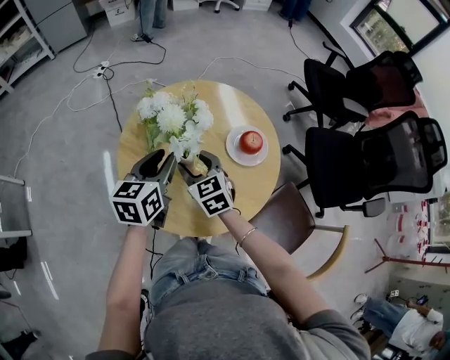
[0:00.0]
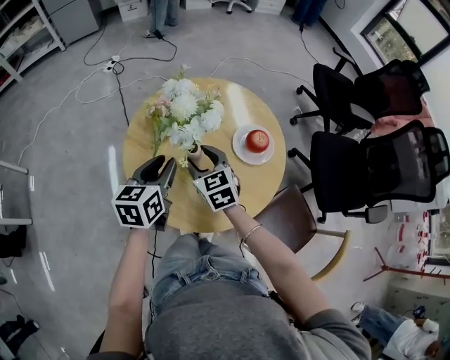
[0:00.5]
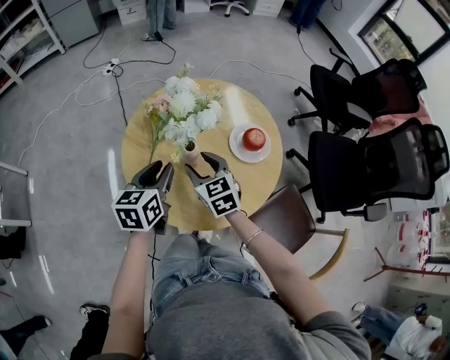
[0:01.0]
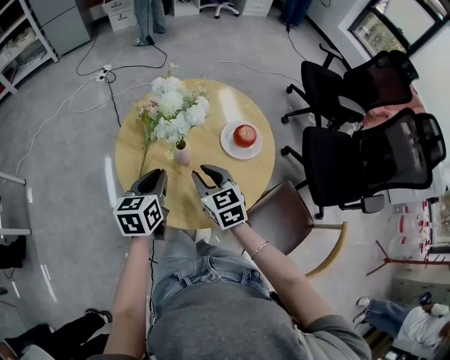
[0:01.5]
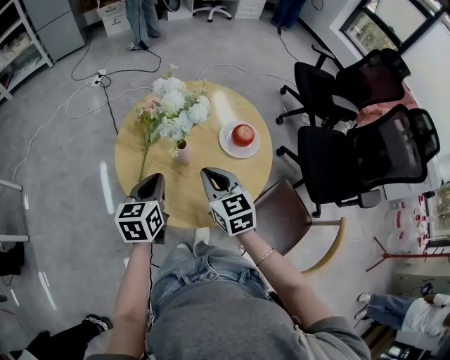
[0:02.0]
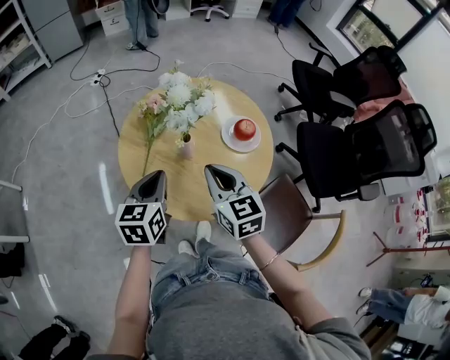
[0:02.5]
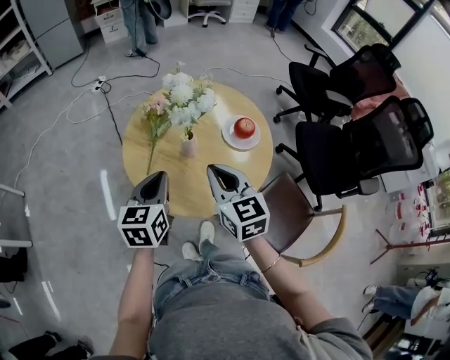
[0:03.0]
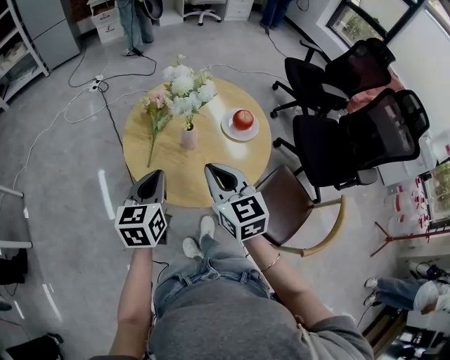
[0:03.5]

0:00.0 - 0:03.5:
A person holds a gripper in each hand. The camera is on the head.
0:00.0 - 0:02.0: The left gripper goes roughly 10 cm backward, and closes, while the right gripper heads backward and to the right, covering about 10 cm, and closes.
0:02.0 - 0:03.5: The left gripper heads backward and upward, covering about 10 cm. The right gripper is displaced upward and backward by roughly 10 cm.

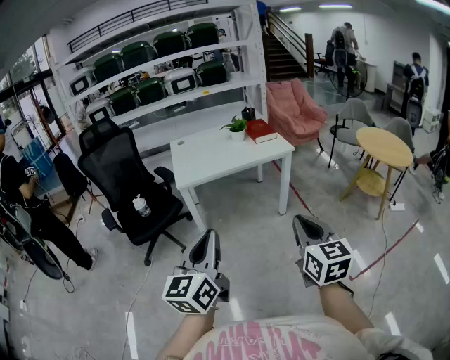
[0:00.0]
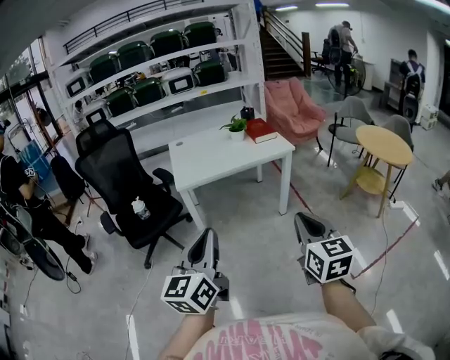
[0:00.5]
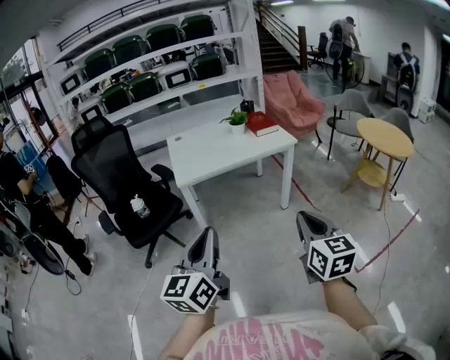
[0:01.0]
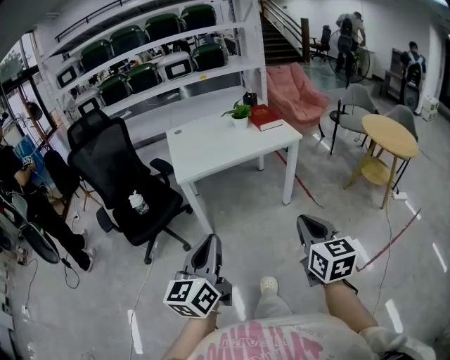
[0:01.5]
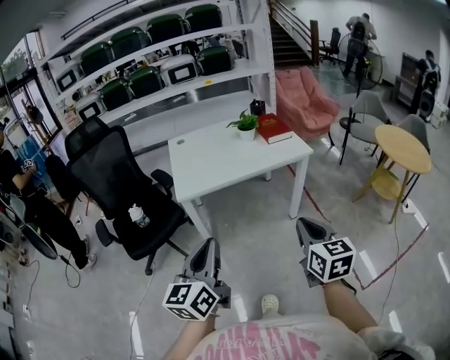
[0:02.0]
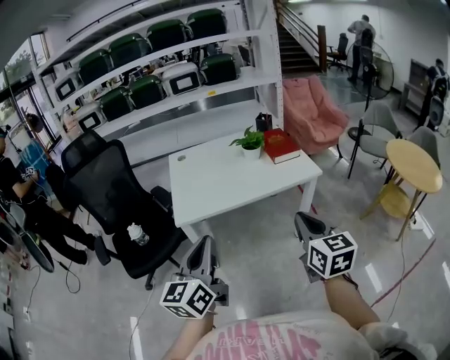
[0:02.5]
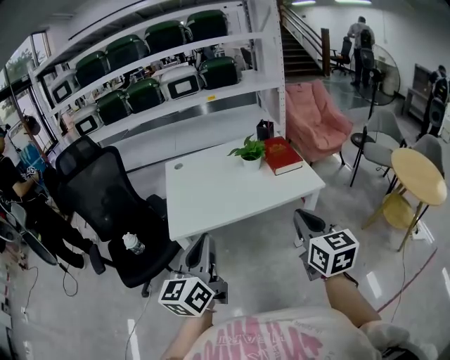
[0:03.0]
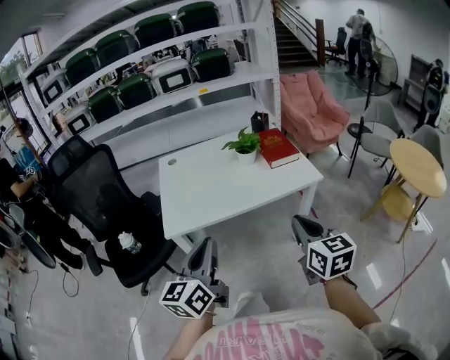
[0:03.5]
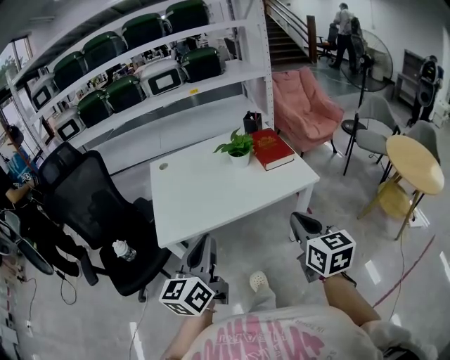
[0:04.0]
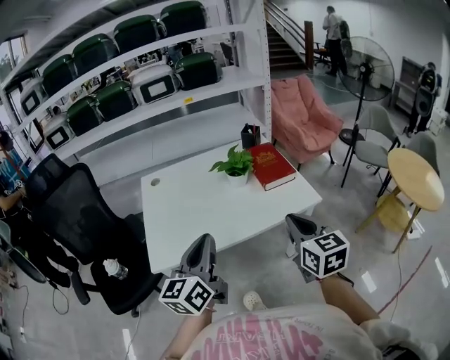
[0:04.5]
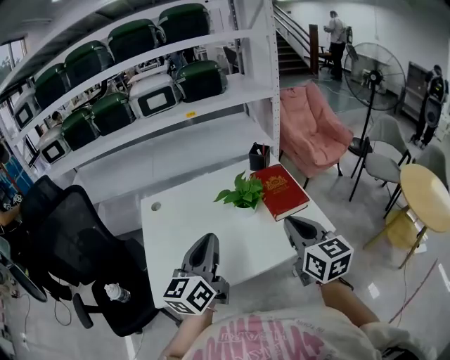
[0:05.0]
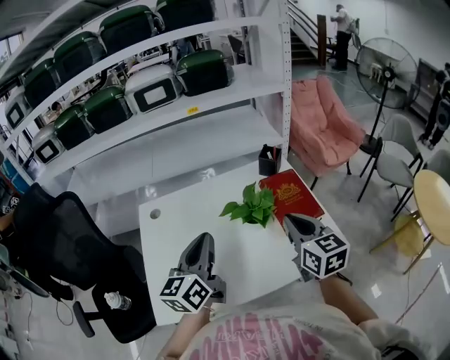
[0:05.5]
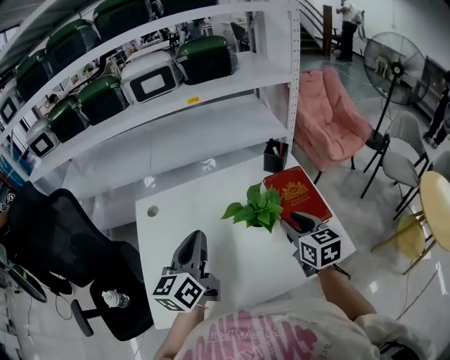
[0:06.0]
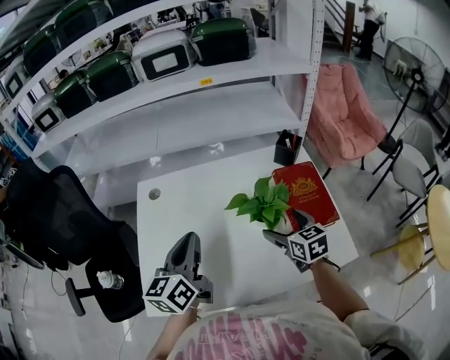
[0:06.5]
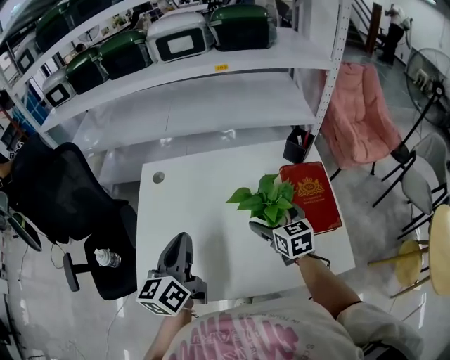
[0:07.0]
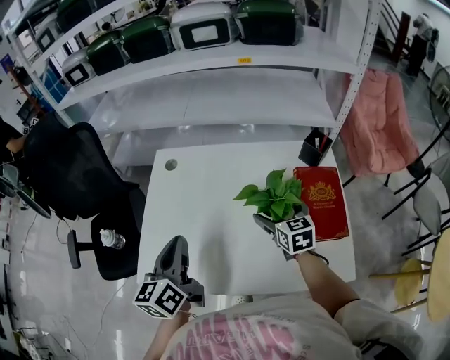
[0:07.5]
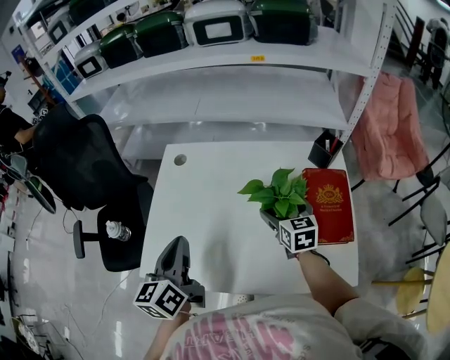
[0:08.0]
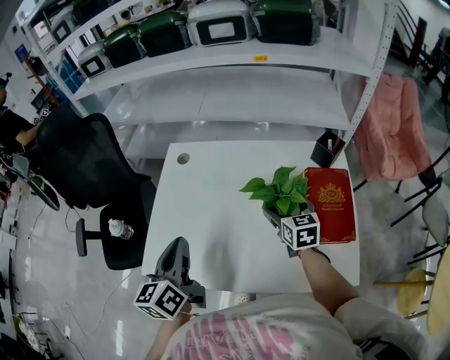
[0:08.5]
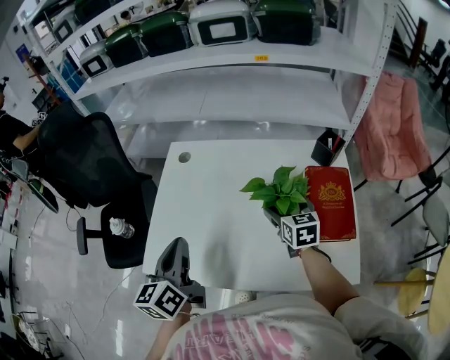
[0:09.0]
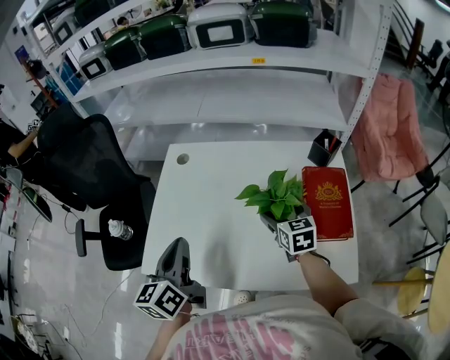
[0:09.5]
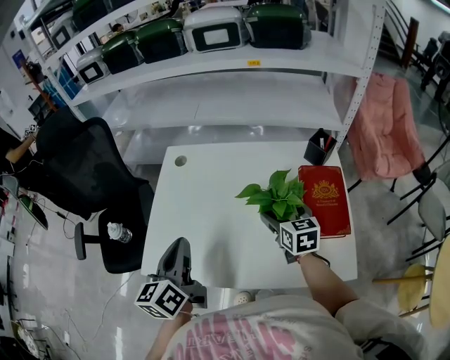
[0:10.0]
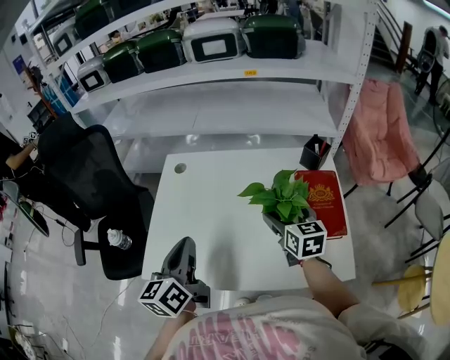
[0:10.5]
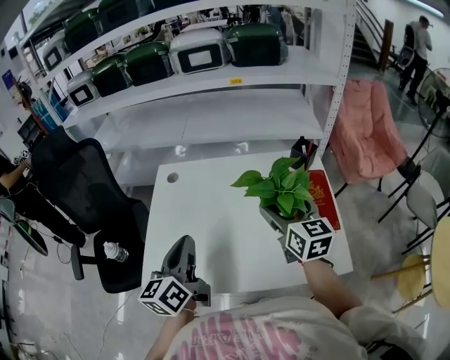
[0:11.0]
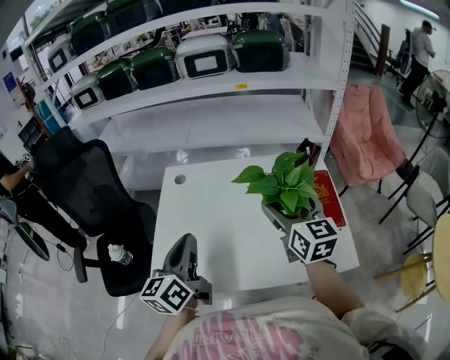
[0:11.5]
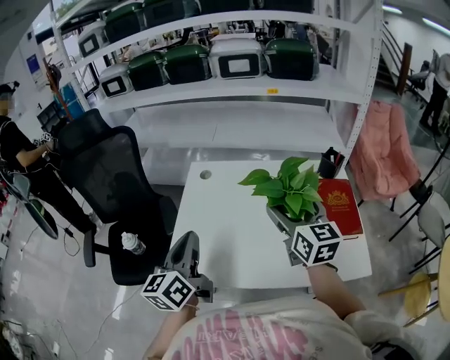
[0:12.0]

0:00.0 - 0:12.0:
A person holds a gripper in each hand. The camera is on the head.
0:00.0 - 0:02.0: The grippers both shift forward by roughly 20 cm.
0:02.0 - 0:04.0: Both grippers move forward, about 30 cm.
0:04.0 - 0:06.0: The pair of grippers is taken forward, approximately 50 cm.
0:06.0 - 0:08.0: The left gripper shifts some 10 cm to the left and backward, and changes its angle by roughly 30 degrees. The right gripper shifts roughly 15 cm forward, downward and to the left, and opens.
0:08.0 - 0:10.0: The grippers move only a little.
0:10.0 - 0:12.0: The right gripper travels upward and to the left by approximately 20 cm, and turns by about 20 degrees. Meanwhile the left gripper moves to the left, some 10 cm.

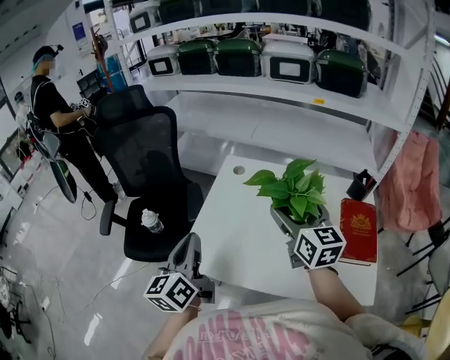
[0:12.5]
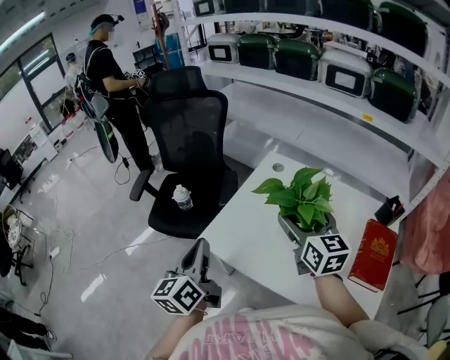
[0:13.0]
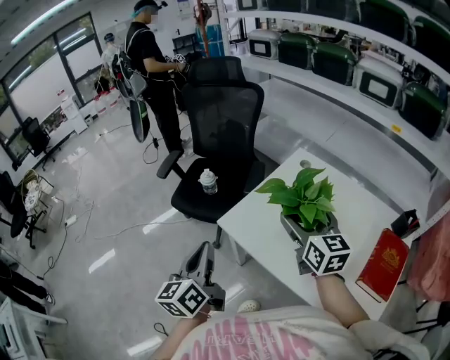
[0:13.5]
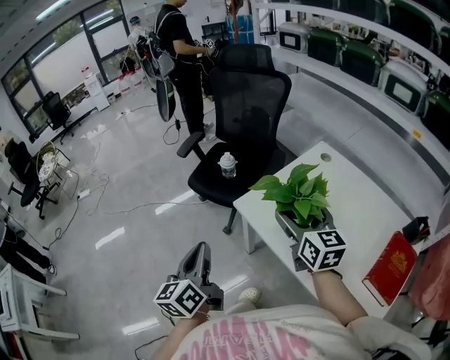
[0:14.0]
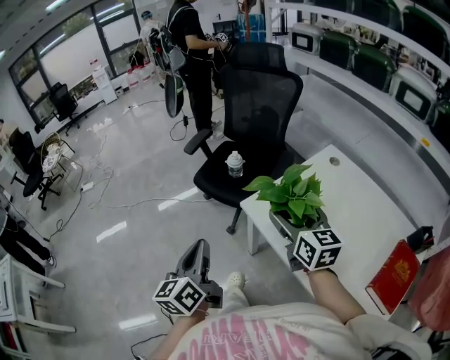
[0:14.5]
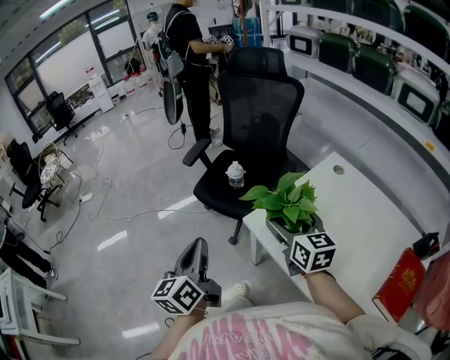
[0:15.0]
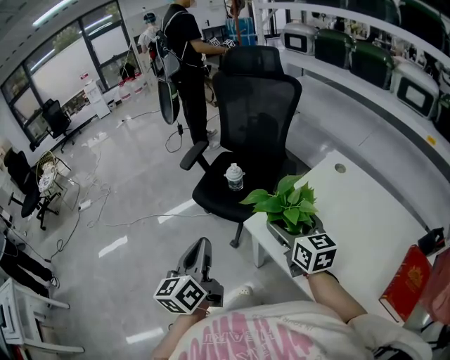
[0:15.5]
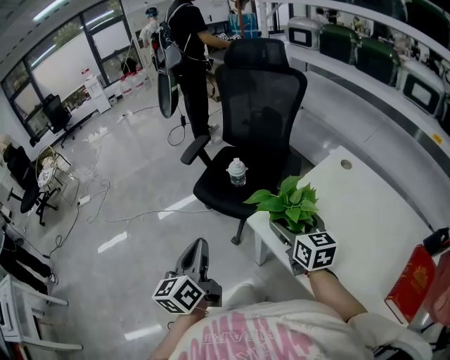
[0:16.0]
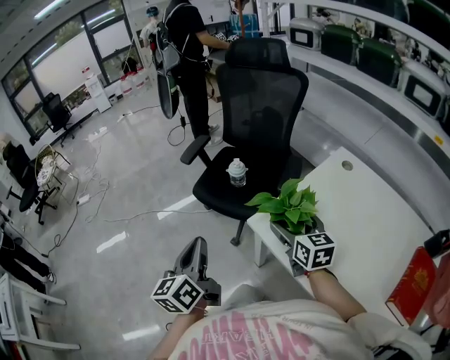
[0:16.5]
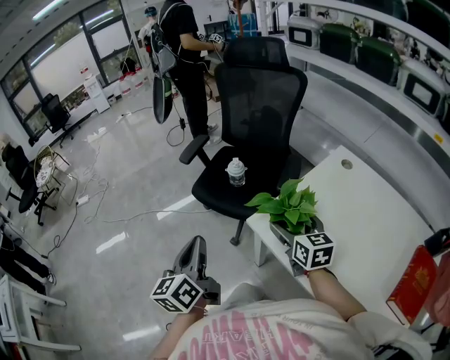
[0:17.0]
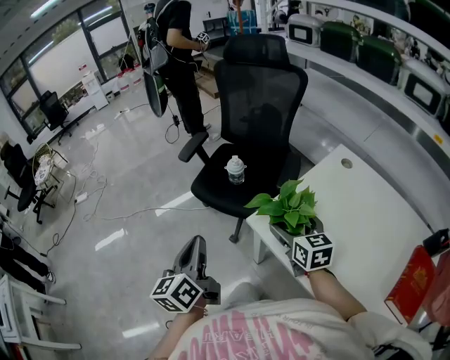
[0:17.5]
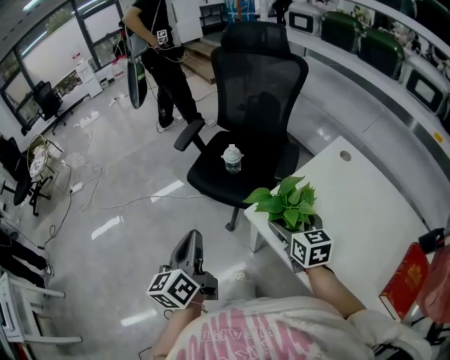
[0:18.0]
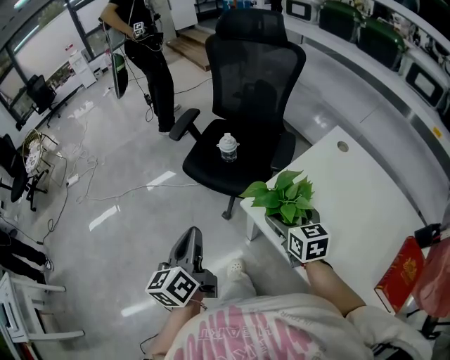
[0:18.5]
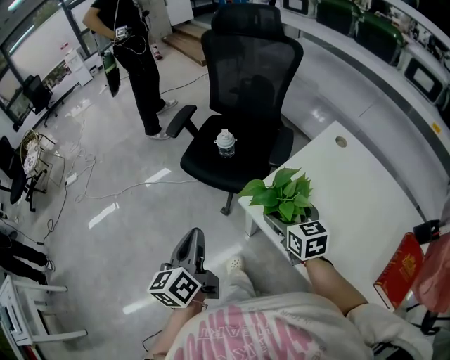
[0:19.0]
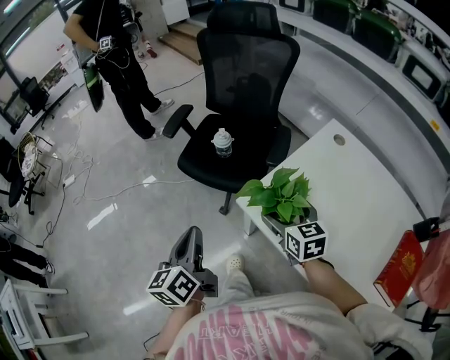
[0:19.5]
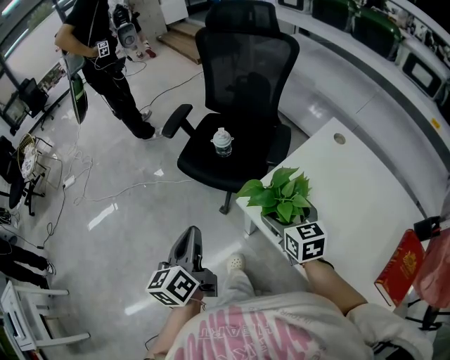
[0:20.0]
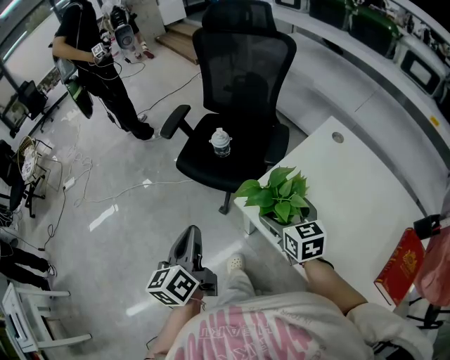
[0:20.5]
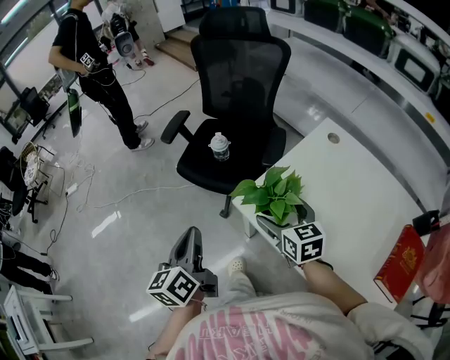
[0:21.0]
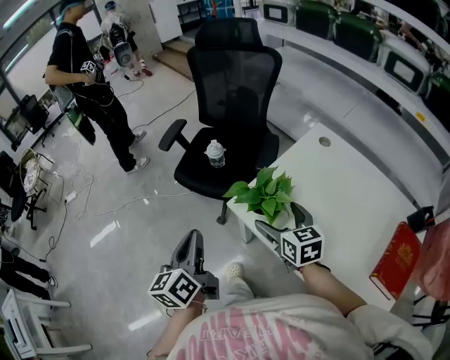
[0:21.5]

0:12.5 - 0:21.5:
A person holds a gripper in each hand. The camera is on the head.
0:12.5 - 0:14.5: The left gripper shifts by roughly 25 cm, and changes its angle by about 40 degrees, while the right gripper changes place by roughly 25 cm, and rotates some 40 degrees.
0:14.5 - 0:17.0: The right gripper goes some 15 cm downward and forward, while the left gripper moves forward and downward, roughly 15 cm.
0:17.0 - 0:19.5: The grippers move only a little.
0:19.5 - 0:21.5: The right gripper moves approximately 5 cm. Meanwhile the left gripper changes place by about 5 cm.

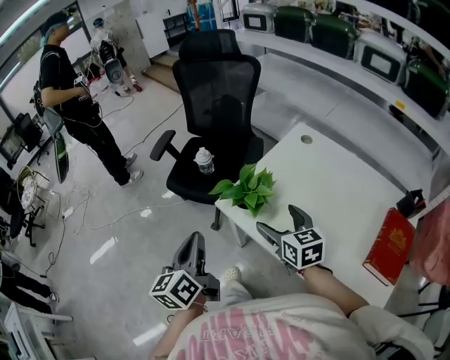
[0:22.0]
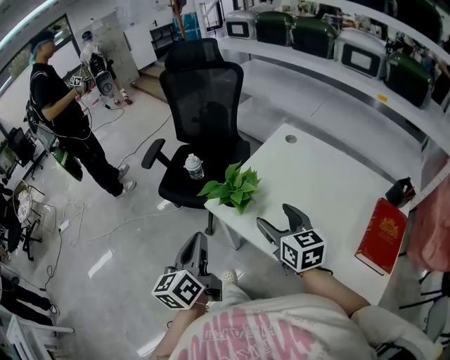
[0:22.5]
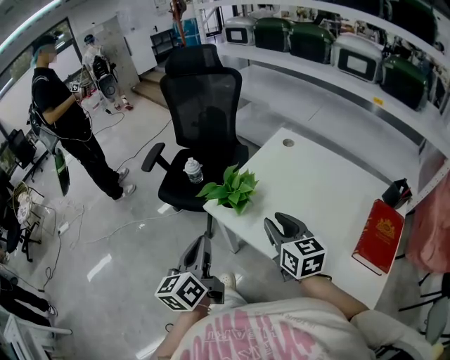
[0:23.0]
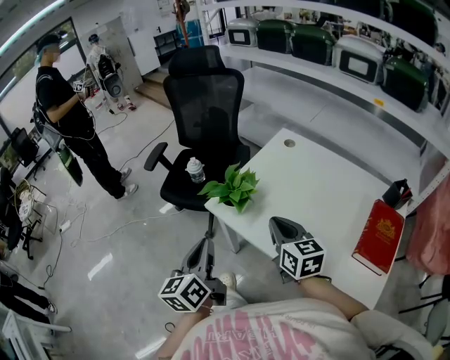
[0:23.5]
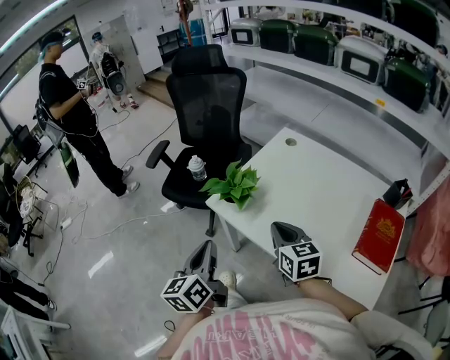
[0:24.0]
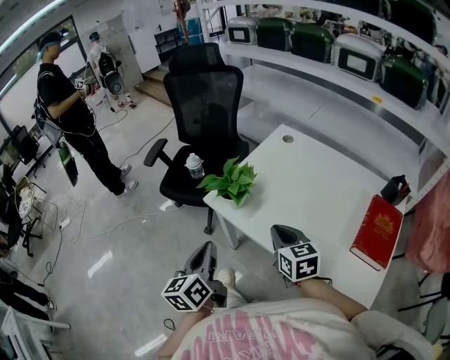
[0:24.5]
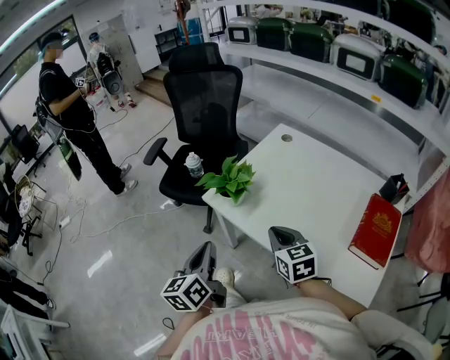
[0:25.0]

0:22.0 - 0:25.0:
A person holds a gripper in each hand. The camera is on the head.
0:22.0 - 0:23.5: The left gripper goes about 10 cm to the right and backward. Meanwhile the right gripper travels backward by about 5 cm, and closes.
0:23.5 - 0:25.0: The right gripper shifts by roughly 5 cm, while the left gripper ends up roughly 5 cm from where it was.
